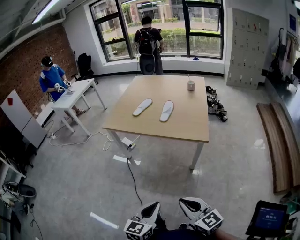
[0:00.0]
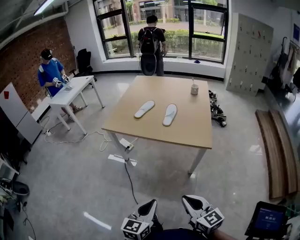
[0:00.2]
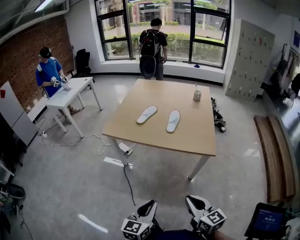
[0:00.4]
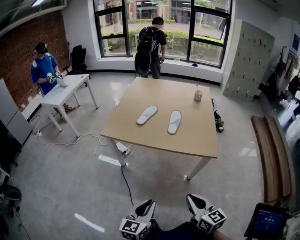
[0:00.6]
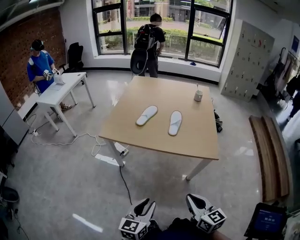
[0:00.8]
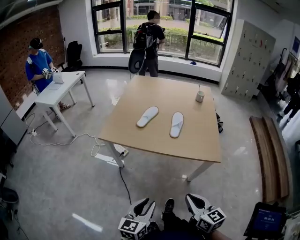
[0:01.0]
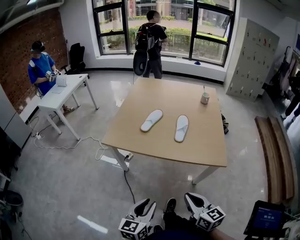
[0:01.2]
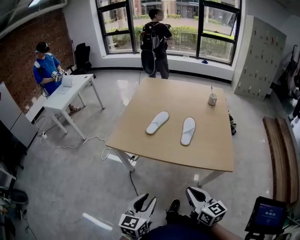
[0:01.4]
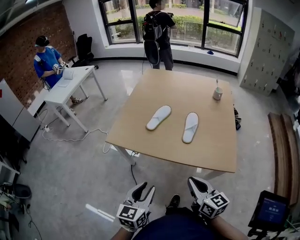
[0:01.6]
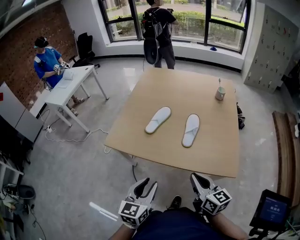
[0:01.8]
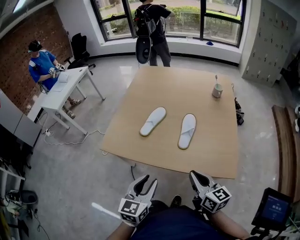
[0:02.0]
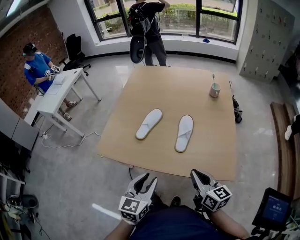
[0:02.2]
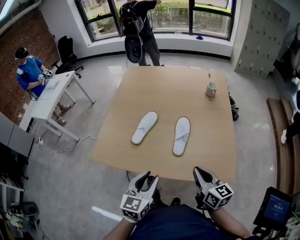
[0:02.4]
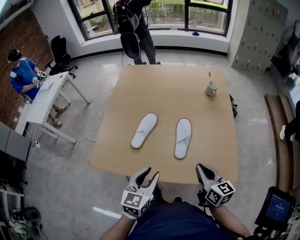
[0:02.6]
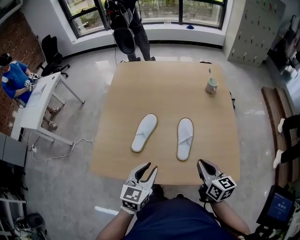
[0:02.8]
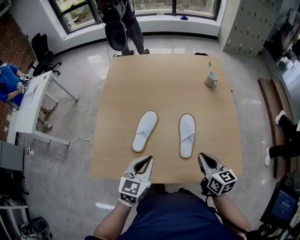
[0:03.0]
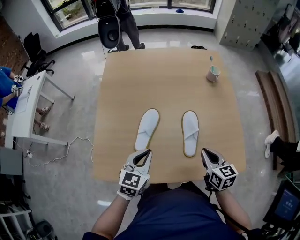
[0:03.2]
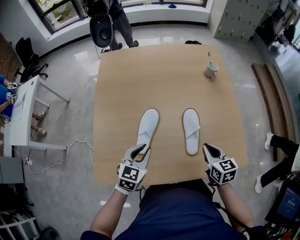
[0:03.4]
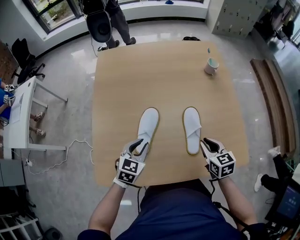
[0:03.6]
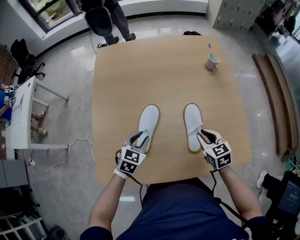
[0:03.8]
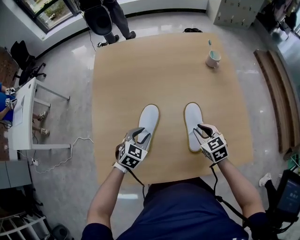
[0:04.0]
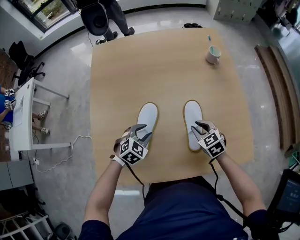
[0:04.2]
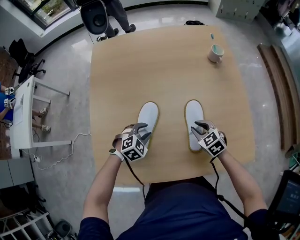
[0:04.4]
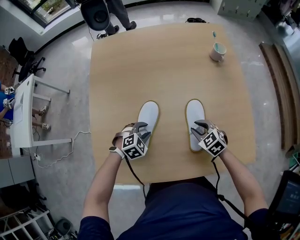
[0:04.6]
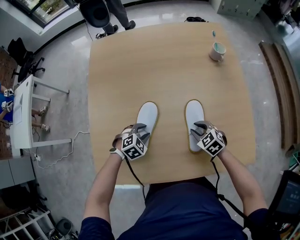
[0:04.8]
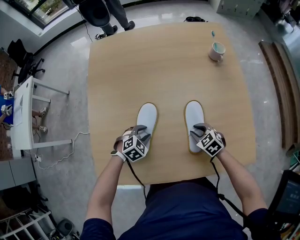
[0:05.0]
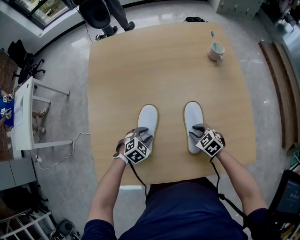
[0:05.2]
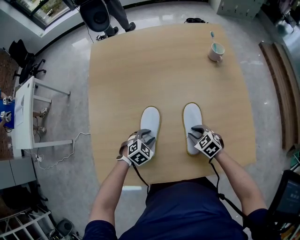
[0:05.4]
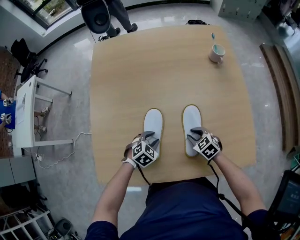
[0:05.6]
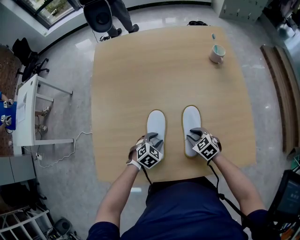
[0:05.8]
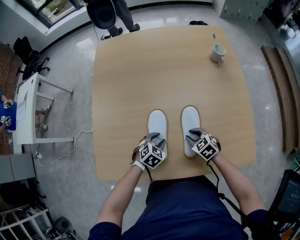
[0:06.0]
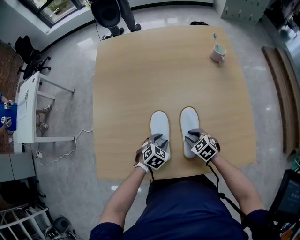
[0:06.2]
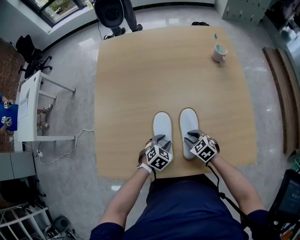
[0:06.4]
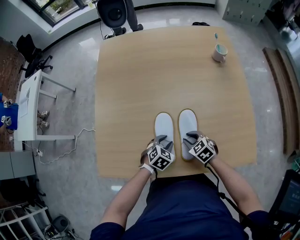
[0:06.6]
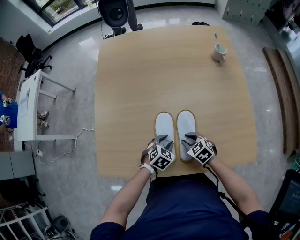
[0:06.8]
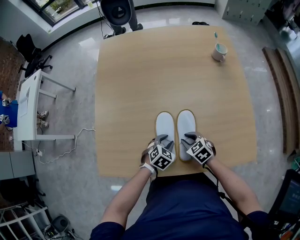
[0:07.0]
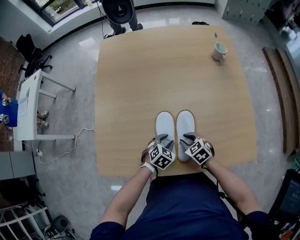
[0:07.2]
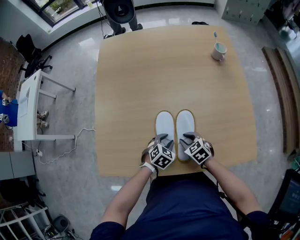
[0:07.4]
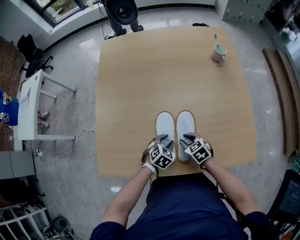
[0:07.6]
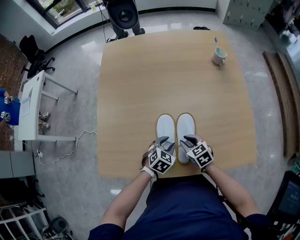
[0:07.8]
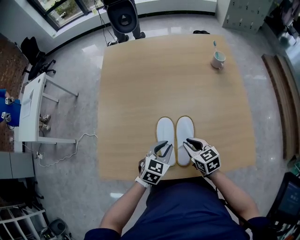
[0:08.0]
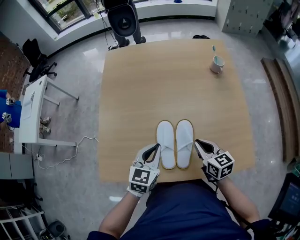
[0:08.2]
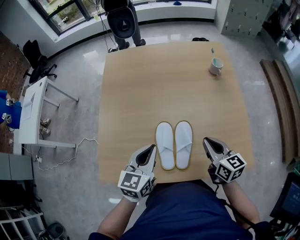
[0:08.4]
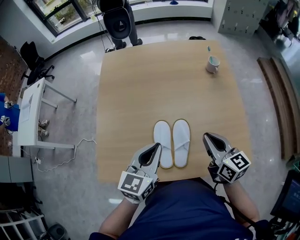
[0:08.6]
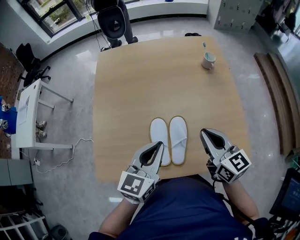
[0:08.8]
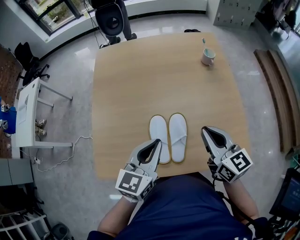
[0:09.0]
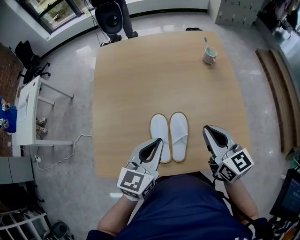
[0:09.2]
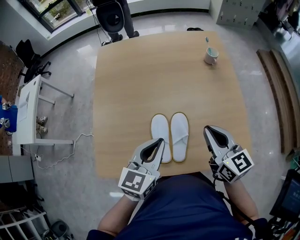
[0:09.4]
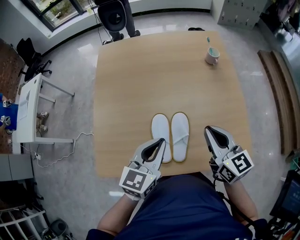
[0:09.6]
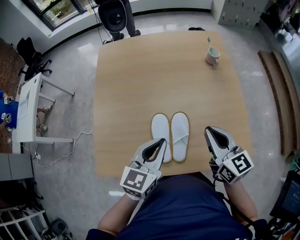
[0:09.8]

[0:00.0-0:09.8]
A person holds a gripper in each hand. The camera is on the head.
0:00.0 to 0:01.4: The left gripper is displaced forward and to the left by some 30 cm, and opens its fingers. The right gripper is displaced forward by about 30 cm.
0:01.4 to 0:02.8: Both grippers move forward, approximately 30 cm.
0:02.8 to 0:04.2: The right gripper shifts about 20 cm downward and forward, swivels roughly 40 degrees, and opens its fingers; the left gripper heads forward and downward, covering about 25 cm, turns by some 50 degrees, and closes, then opens again.
0:04.2 to 0:05.6: Both grippers travel together downward, some 5 cm.
0:05.6 to 0:07.0: The left gripper moves about 5 cm; the right gripper goes approximately 5 cm to the left.
0:07.0 to 0:08.4: The left gripper is displaced upward by approximately 25 cm, points its fingers about 40 degrees further upward, and closes; the right gripper travels upward and to the right by about 25 cm, points its fingers about 30 degrees further upward, and closes.
0:08.4 to 0:09.8: The left gripper is displaced to the right by roughly 5 cm; the right gripper shifts some 10 cm upward.

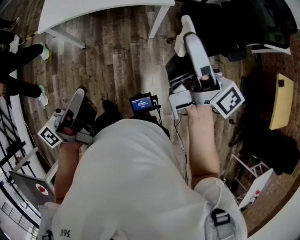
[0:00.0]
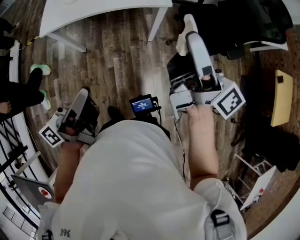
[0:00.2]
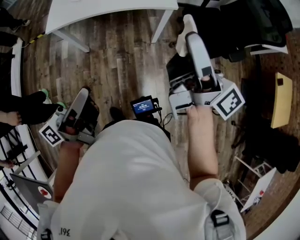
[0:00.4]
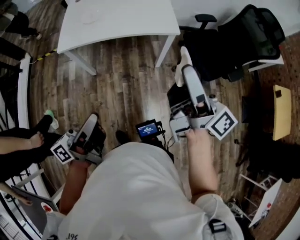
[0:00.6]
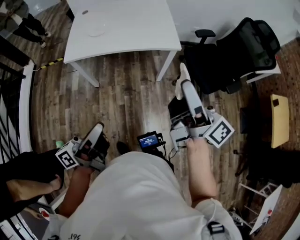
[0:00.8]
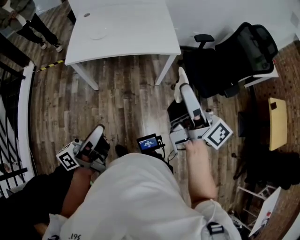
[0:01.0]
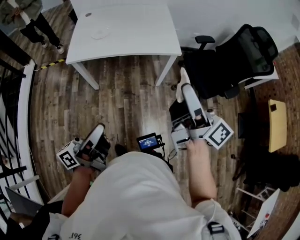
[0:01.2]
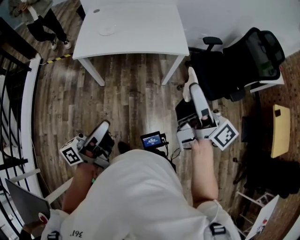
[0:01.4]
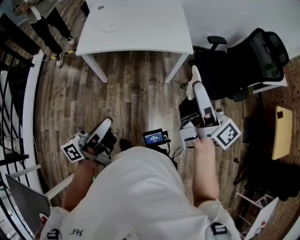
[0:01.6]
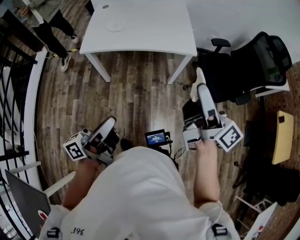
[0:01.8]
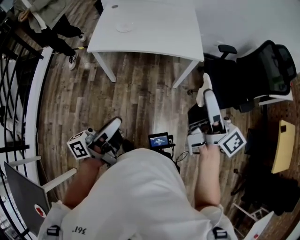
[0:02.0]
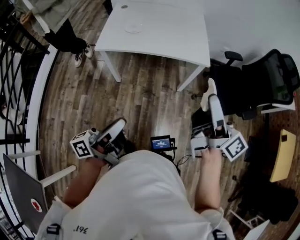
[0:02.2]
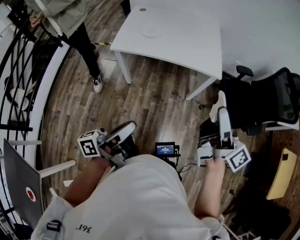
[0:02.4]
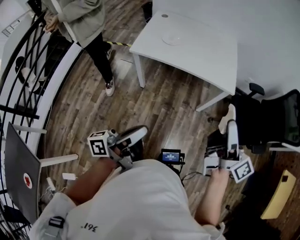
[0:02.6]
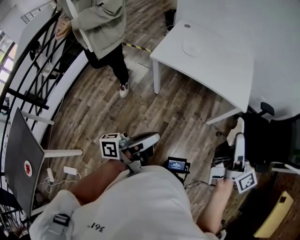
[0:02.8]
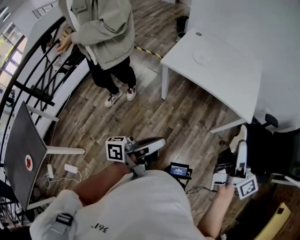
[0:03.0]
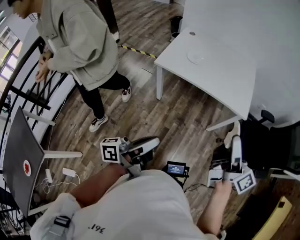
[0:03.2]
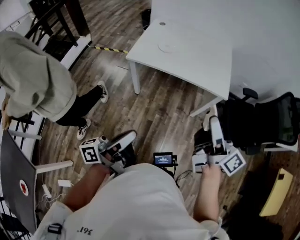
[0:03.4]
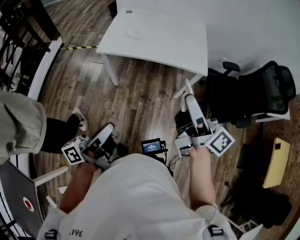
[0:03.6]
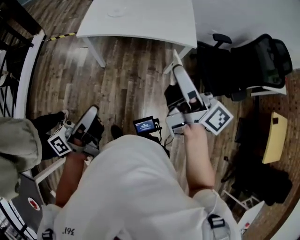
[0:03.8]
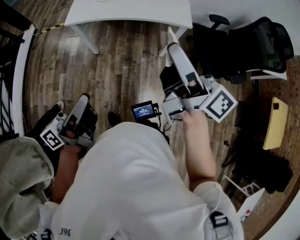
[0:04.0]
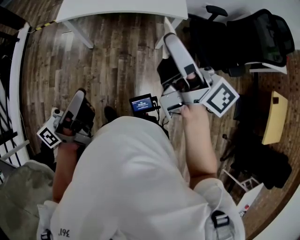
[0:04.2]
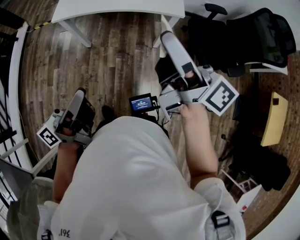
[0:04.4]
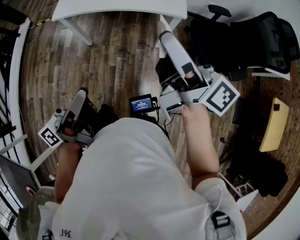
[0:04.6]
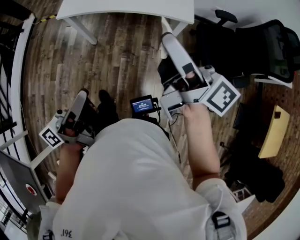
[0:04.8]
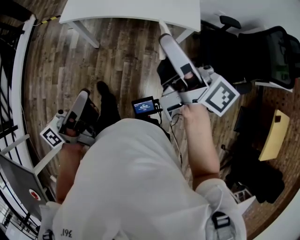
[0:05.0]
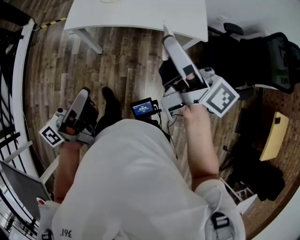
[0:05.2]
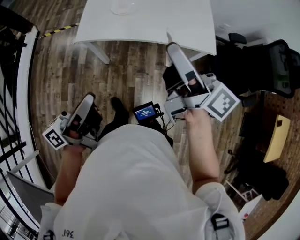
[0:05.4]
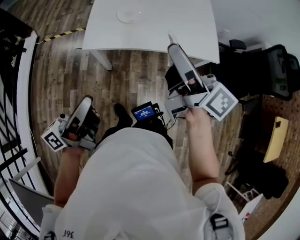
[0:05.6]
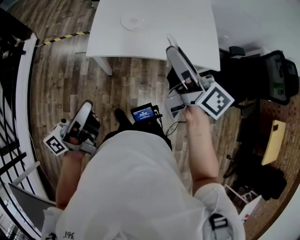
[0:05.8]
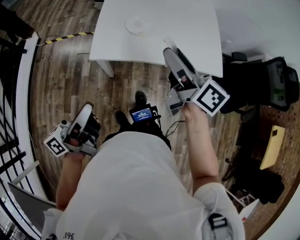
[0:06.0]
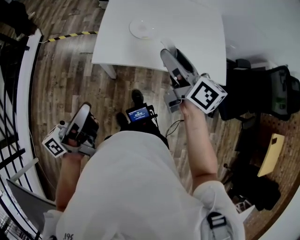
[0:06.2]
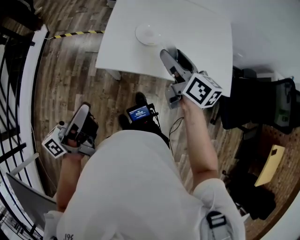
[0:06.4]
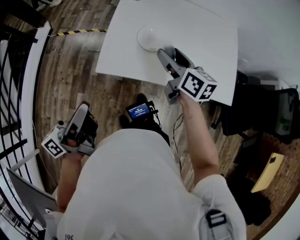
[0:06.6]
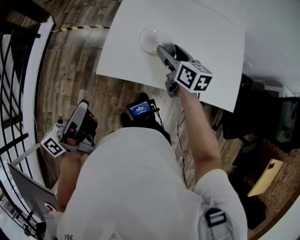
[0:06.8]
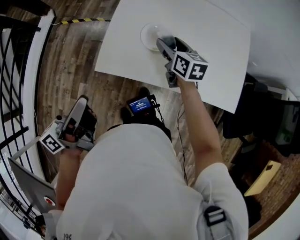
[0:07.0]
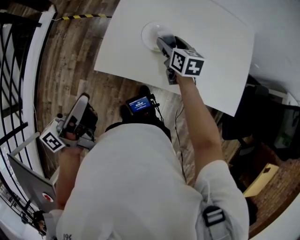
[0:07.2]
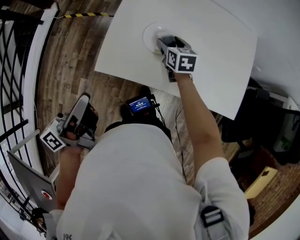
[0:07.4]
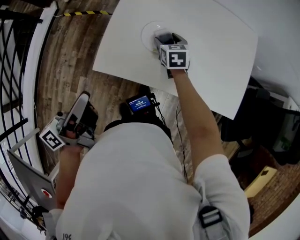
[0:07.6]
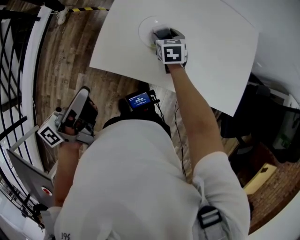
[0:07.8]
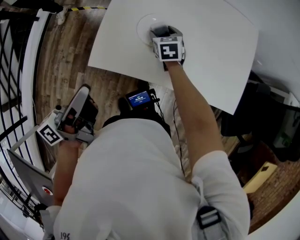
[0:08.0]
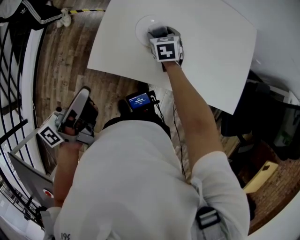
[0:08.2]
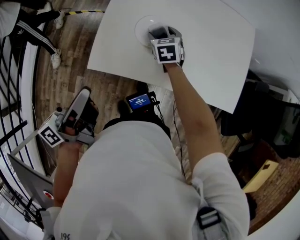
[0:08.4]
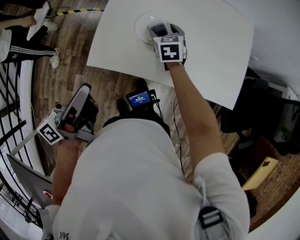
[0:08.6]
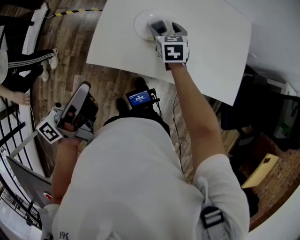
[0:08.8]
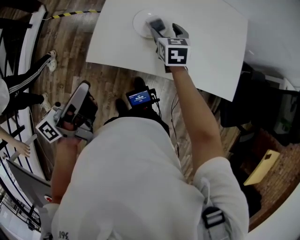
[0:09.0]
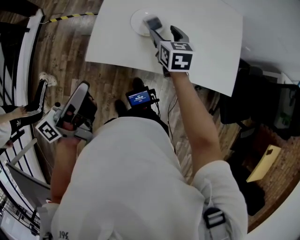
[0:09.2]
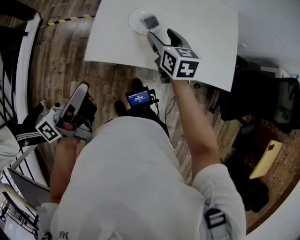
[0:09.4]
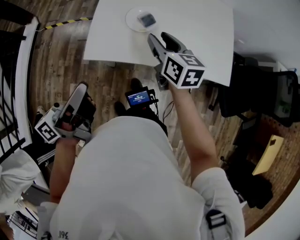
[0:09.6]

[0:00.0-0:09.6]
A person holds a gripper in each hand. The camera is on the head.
0:00.0 to 0:01.6: The right gripper shifts about 10 cm upward, to the left and backward; the left gripper shifts about 5 cm backward.
0:01.6 to 0:03.2: The right gripper heads to the left, covering approximately 5 cm.
0:03.2 to 0:04.8: The left gripper is displaced to the right and forward by some 10 cm, while the right gripper travels to the right, forward and downward by approximately 10 cm.
0:04.8 to 0:06.4: The two grippers travel together, forward and to the left, roughly 40 cm. The right gripper changes its angle by roughly 30 degrees.
0:06.4 to 0:08.0: The right gripper travels downward and forward by roughly 30 cm, and angles its fingers downward, by some 30 degrees, while the left gripper goes approximately 15 cm forward.
0:08.0 to 0:09.6: The right gripper travels upward and backward by roughly 25 cm, changes its angle by some 30 degrees, and closes, while the left gripper shifts about 10 cm backward.

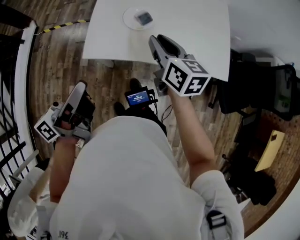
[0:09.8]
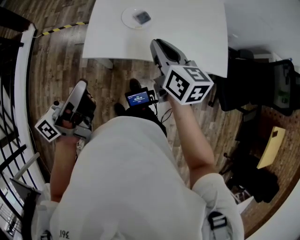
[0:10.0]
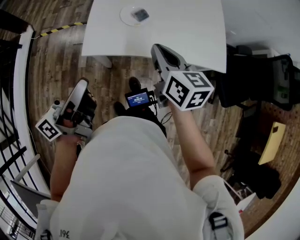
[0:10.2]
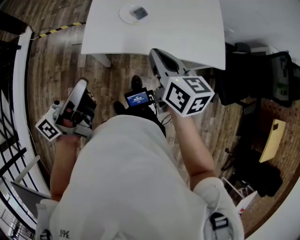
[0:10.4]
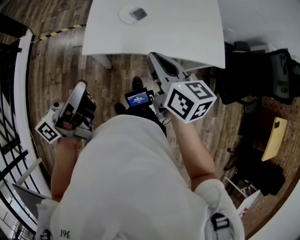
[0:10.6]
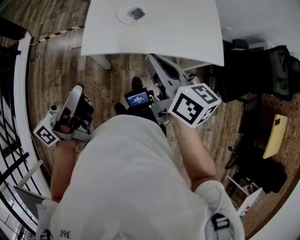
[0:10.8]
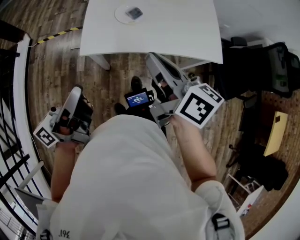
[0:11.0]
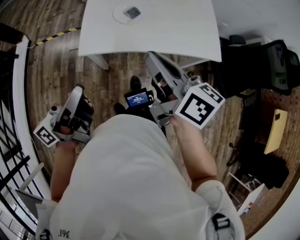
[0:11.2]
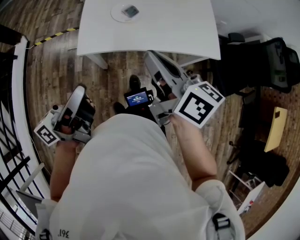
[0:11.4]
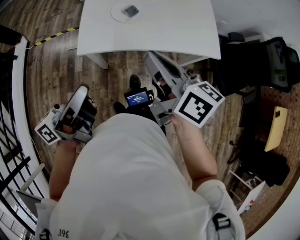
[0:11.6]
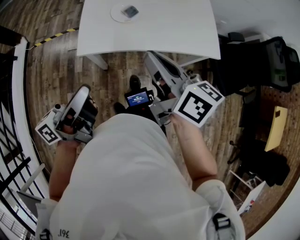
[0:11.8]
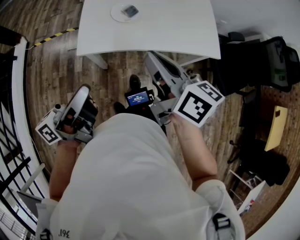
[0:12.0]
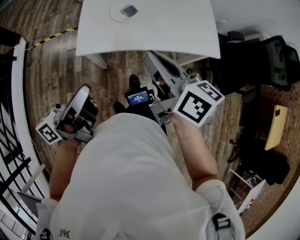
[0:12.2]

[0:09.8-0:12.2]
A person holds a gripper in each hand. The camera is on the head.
0:09.8 to 0:11.0: The right gripper moves backward and upward, approximately 15 cm, and turns by about 20 degrees. The left gripper moves backward, roughly 5 cm.
0:11.0 to 0:12.2: The grippers stay close to where they were, moving slightly.

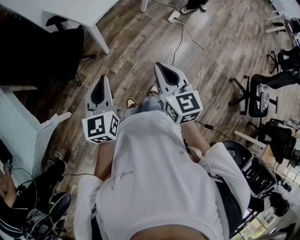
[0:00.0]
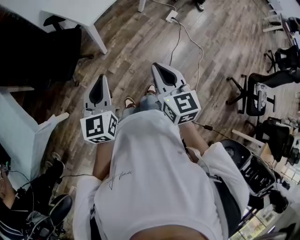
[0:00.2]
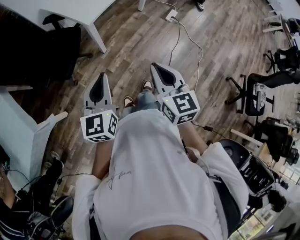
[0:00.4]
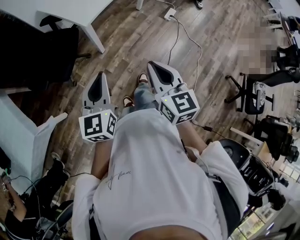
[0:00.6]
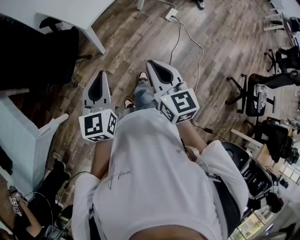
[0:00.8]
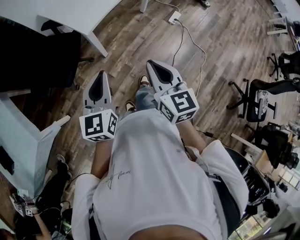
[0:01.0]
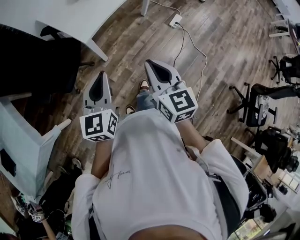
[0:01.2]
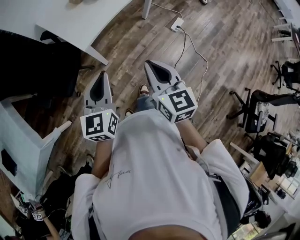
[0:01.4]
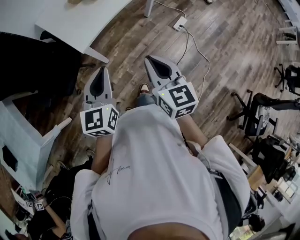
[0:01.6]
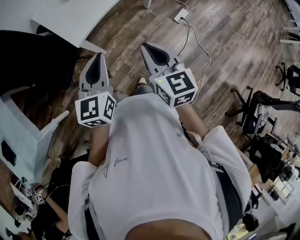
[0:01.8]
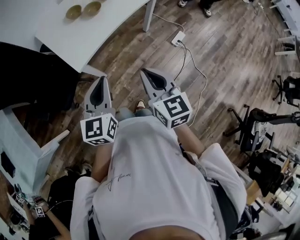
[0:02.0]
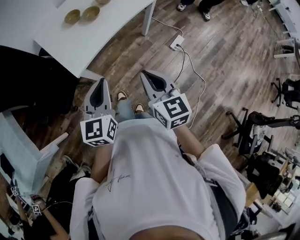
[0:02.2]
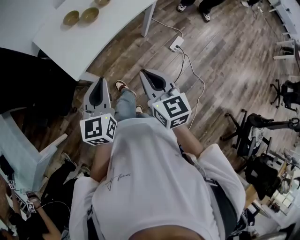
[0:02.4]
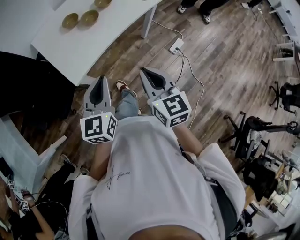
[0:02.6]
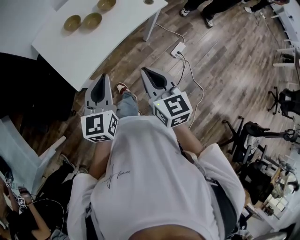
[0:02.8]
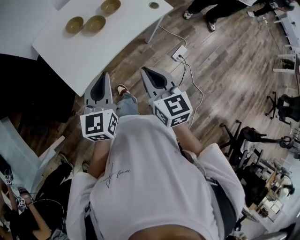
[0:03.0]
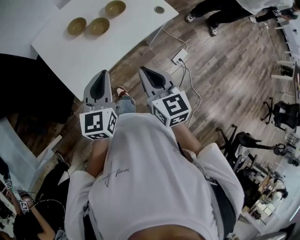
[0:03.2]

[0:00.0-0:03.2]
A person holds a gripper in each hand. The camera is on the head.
0:00.0 to 0:01.6: The right gripper moves forward, some 20 cm. Meanwhile the left gripper heads forward and to the right, covering about 20 cm.
0:01.6 to 0:03.2: The grippers both shift forward by about 25 cm.
